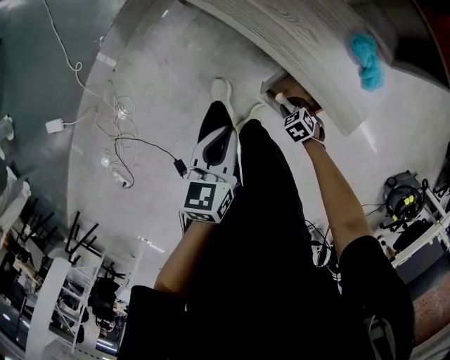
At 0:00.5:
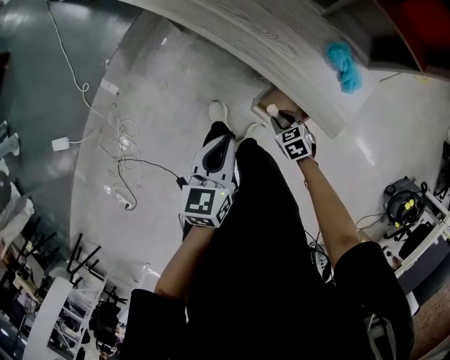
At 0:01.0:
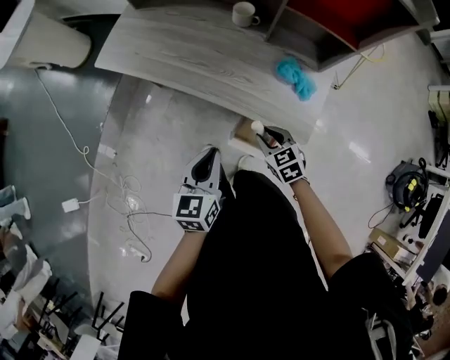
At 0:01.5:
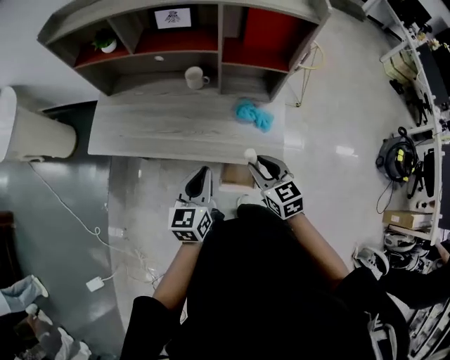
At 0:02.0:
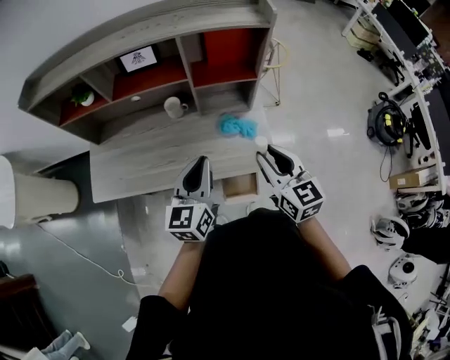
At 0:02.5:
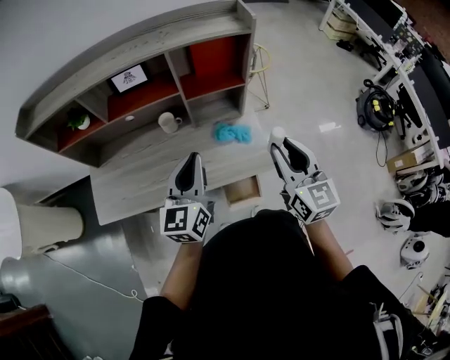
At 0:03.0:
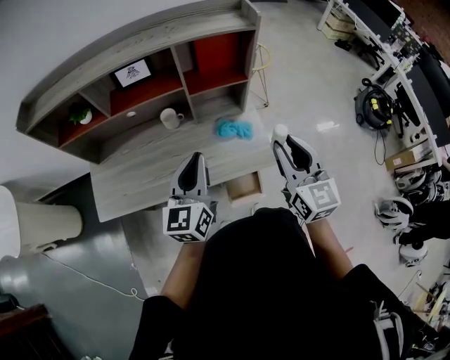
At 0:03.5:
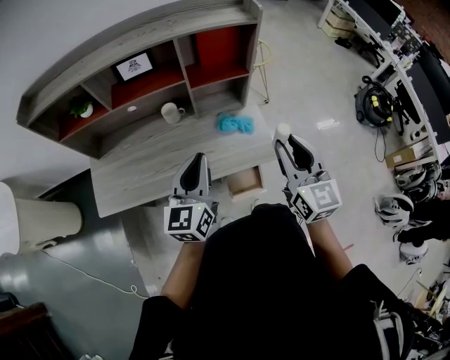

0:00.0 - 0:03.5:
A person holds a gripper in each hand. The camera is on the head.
0:00.0 - 0:02.0: The right gripper shifts some 60 cm upward, and tilts its fingers roughly 60 degrees upward, while the left gripper goes roughly 30 cm upward, and swivels some 50 degrees.
0:02.0 - 0:03.5: The left gripper ends up roughly 5 cm from where it was. Meanwhile the right gripper shifts about 5 cm upward.

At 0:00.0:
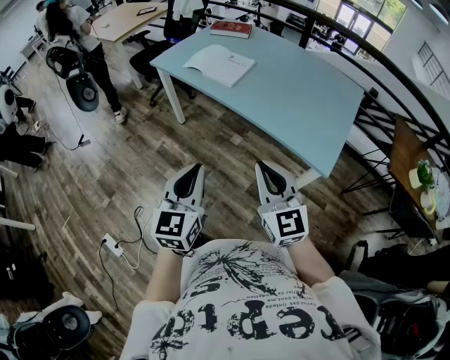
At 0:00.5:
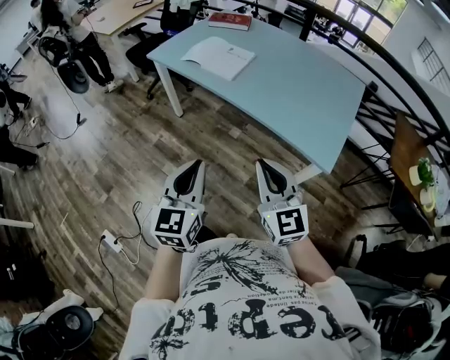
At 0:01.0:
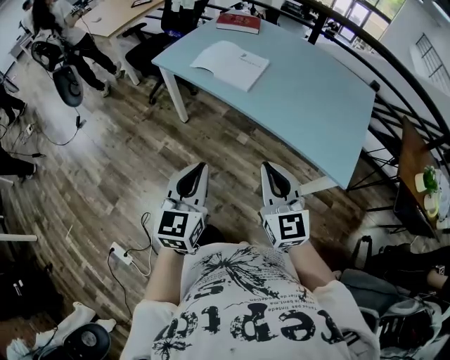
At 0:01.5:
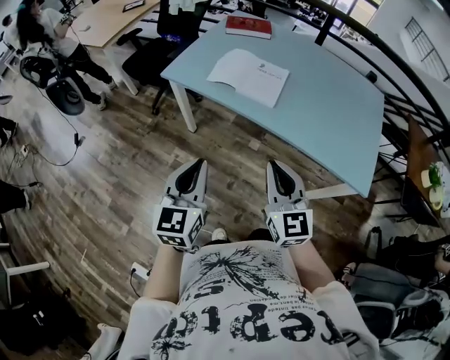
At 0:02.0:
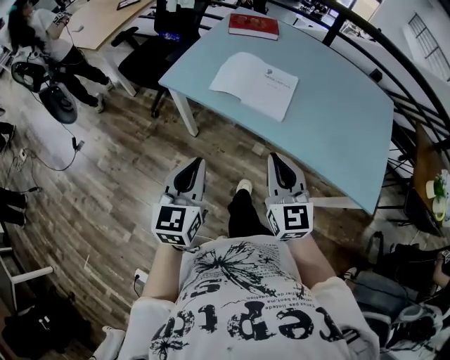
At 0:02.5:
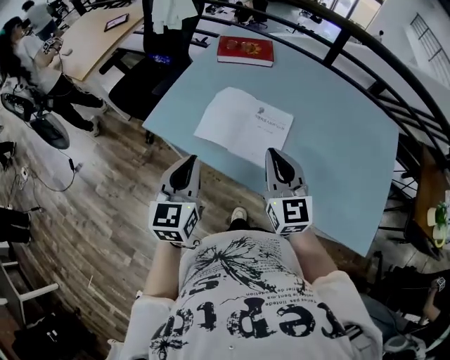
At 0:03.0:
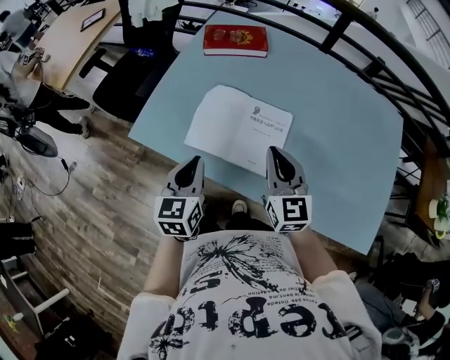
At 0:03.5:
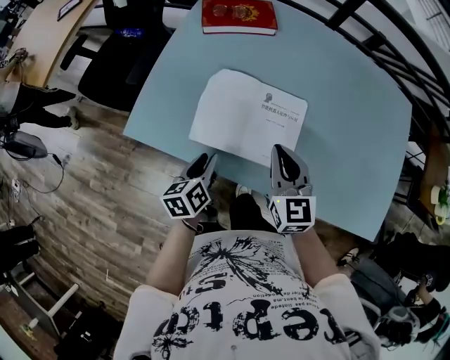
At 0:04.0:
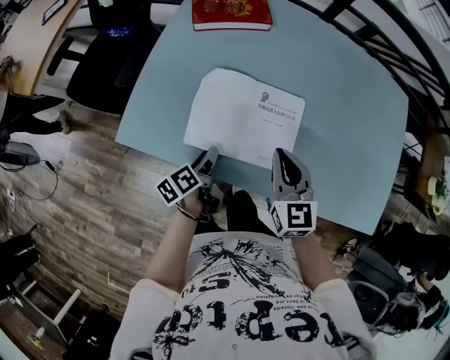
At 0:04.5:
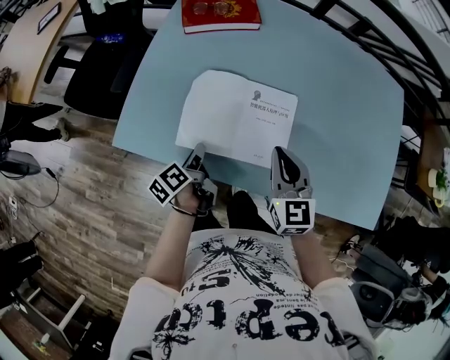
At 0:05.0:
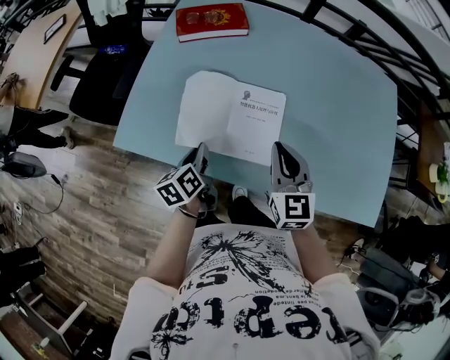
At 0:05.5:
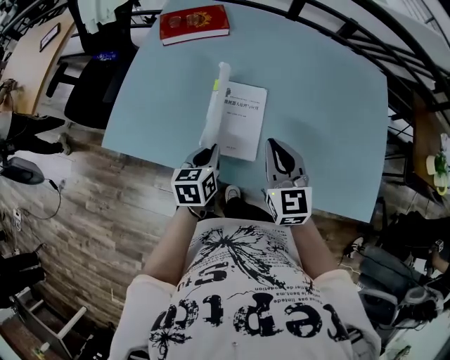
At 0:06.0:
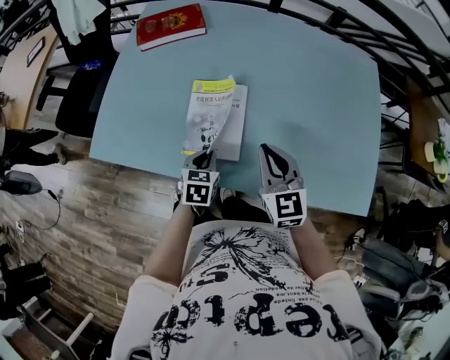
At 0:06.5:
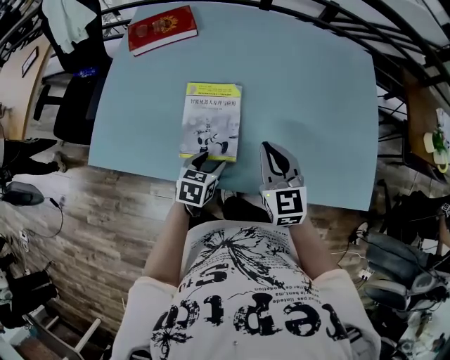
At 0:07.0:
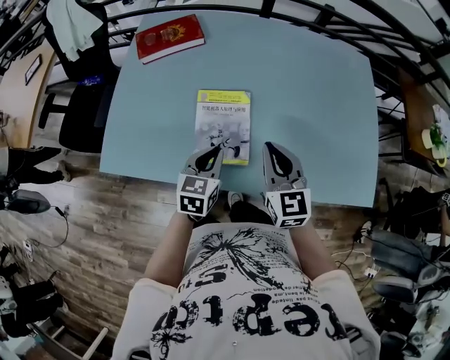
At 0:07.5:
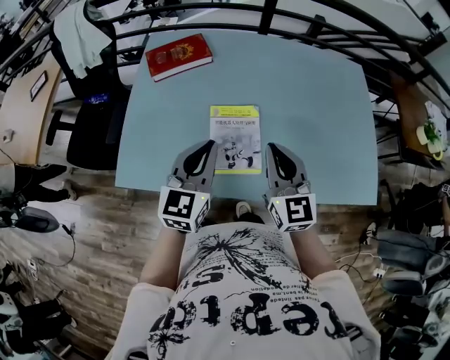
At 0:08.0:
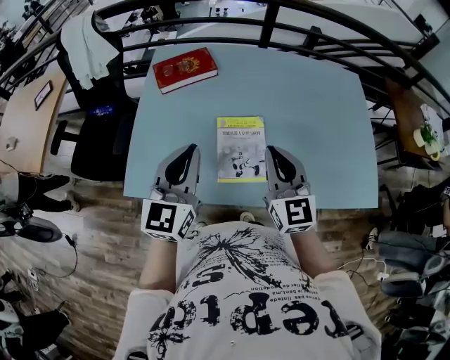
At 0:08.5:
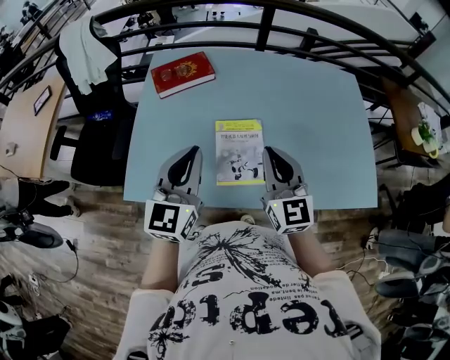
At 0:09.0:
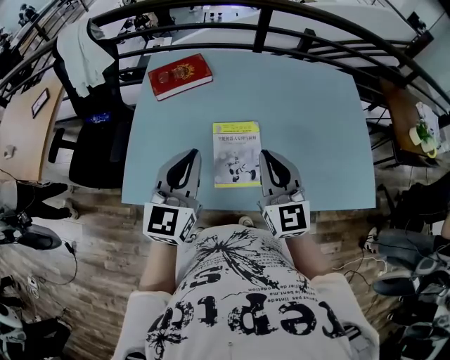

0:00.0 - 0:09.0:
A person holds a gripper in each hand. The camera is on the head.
0:00.0 - 0:02.0: Both grippers are carried forward and to the left, about 40 cm.
0:02.0 - 0:04.5: The right gripper travels forward by some 30 cm, and swivels some 20 degrees. The left gripper goes roughly 40 cm forward and downward, twists approximately 60 degrees counterclockwise, seen from behind, and opens, then closes again.
0:04.5 - 0:07.0: The right gripper travels to the right by approximately 10 cm. The left gripper is displaced to the right and upward by roughly 20 cm, twists approximately 70 degrees clockwise, seen from behind, and opens, then closes again.
0:07.0 - 0:09.0: The left gripper heads upward and to the left, covering about 25 cm, and rotates some 30 degrees, while the right gripper moves upward and to the left, roughly 15 cm.

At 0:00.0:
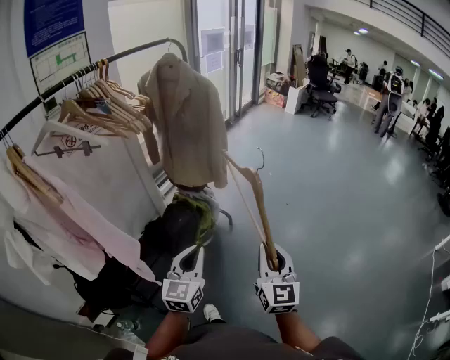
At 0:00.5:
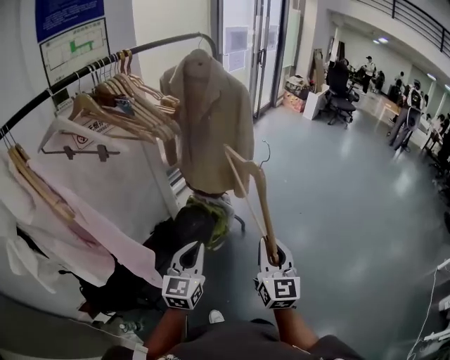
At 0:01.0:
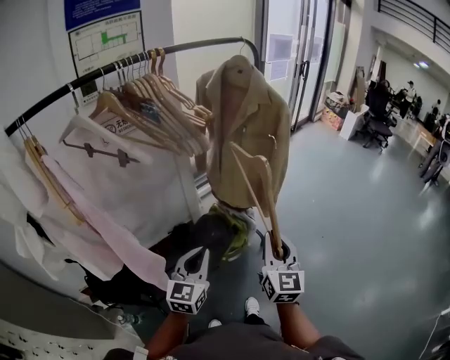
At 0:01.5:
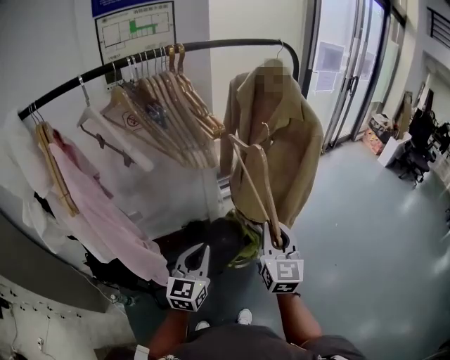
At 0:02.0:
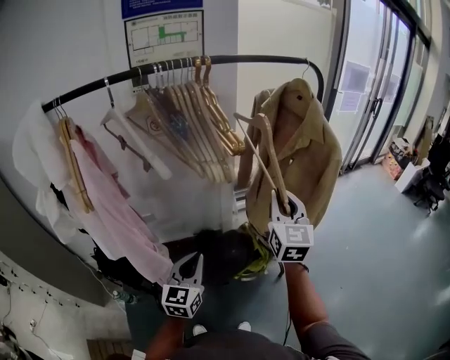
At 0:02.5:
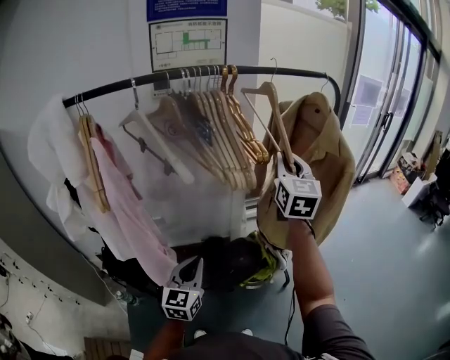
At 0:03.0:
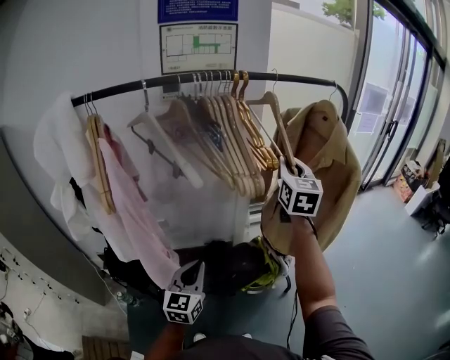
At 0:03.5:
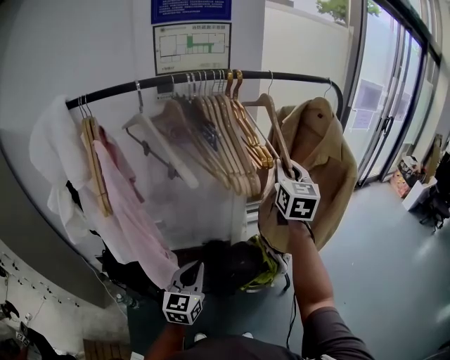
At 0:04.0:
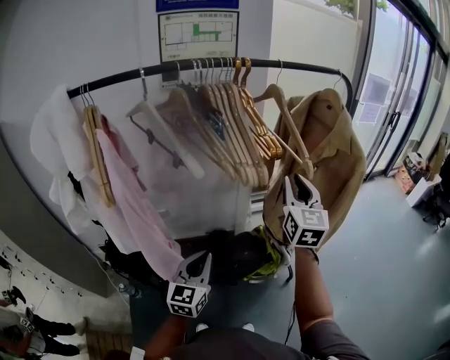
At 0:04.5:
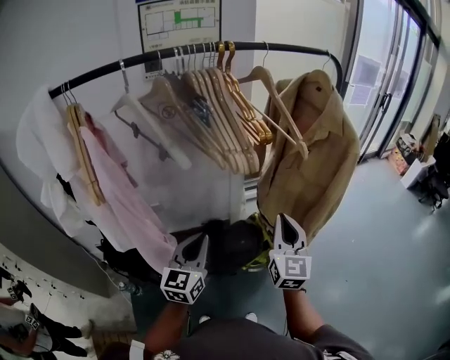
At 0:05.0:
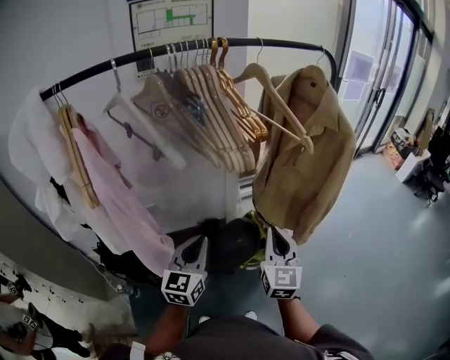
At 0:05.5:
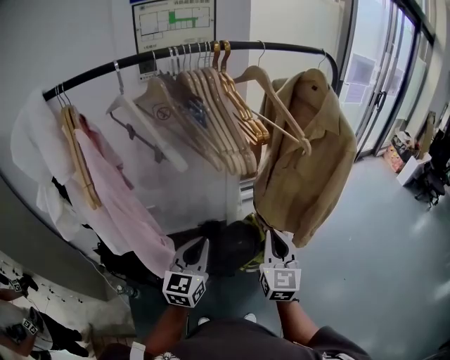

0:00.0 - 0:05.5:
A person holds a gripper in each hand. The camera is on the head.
0:00.0 - 0:02.0: The left gripper shifts by roughly 25 cm, and swivels roughly 40 degrees. Meanwhile the right gripper shifts by roughly 50 cm, and changes its angle by some 40 degrees.
0:02.0 - 0:03.5: The left gripper moves to the left, roughly 5 cm; the right gripper goes roughly 15 cm forward, upward and to the left.
0:03.5 - 0:05.5: The right gripper moves backward and downward, approximately 25 cm.

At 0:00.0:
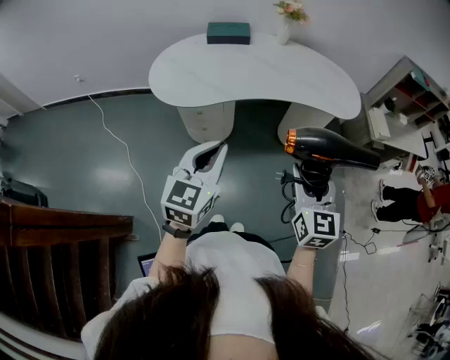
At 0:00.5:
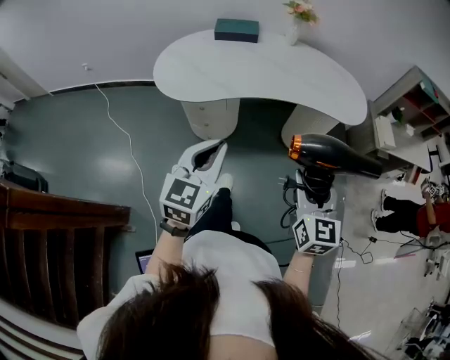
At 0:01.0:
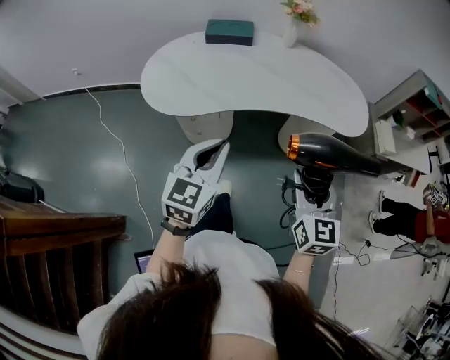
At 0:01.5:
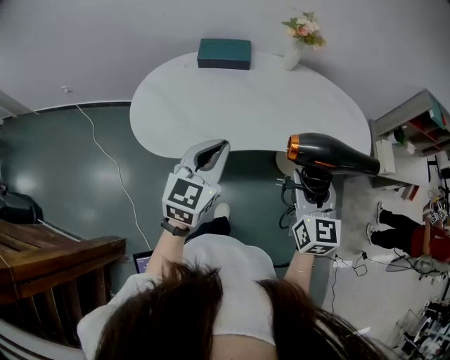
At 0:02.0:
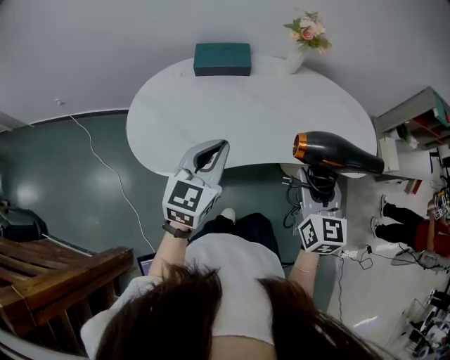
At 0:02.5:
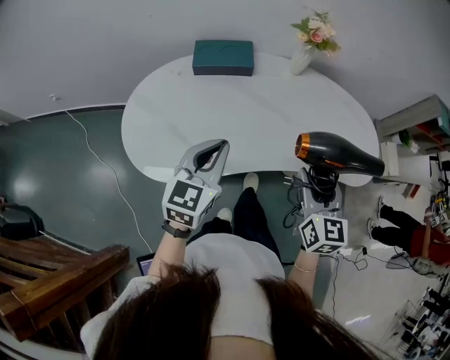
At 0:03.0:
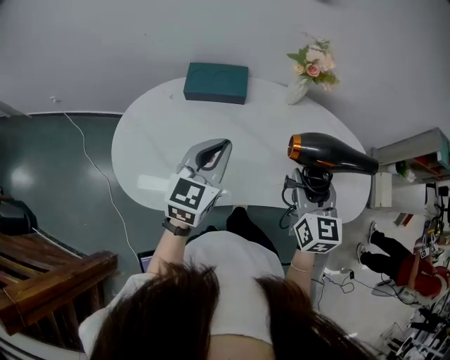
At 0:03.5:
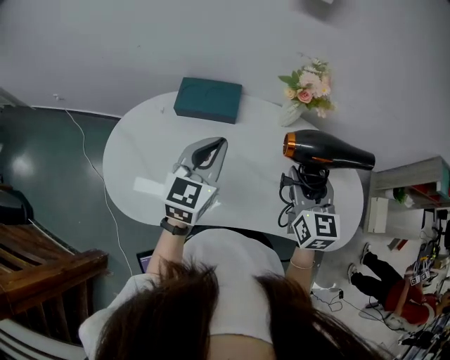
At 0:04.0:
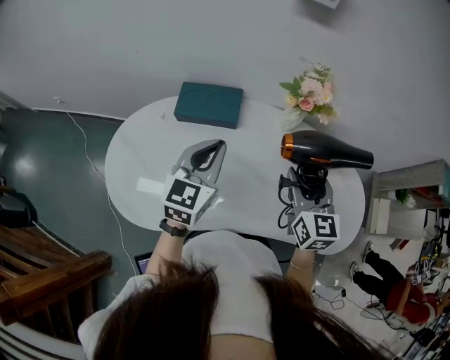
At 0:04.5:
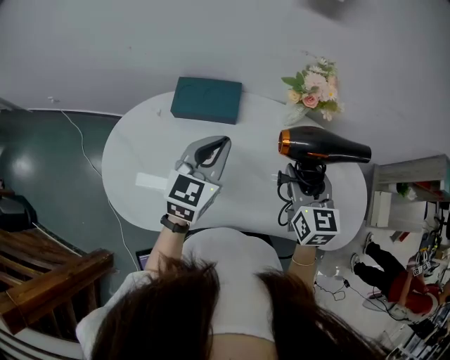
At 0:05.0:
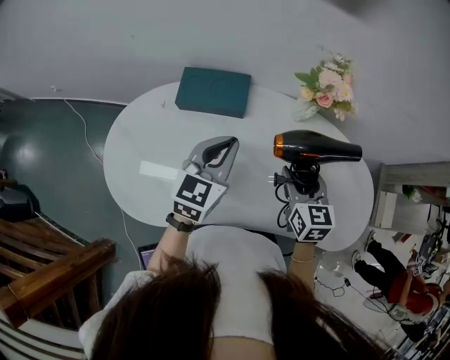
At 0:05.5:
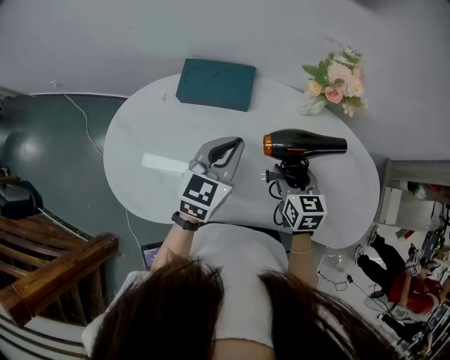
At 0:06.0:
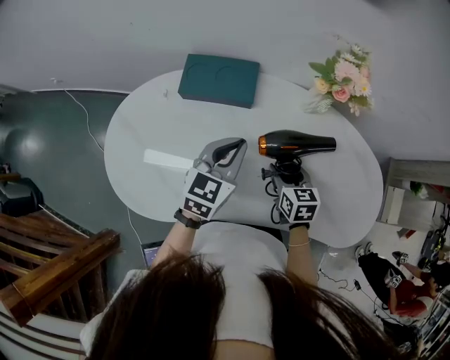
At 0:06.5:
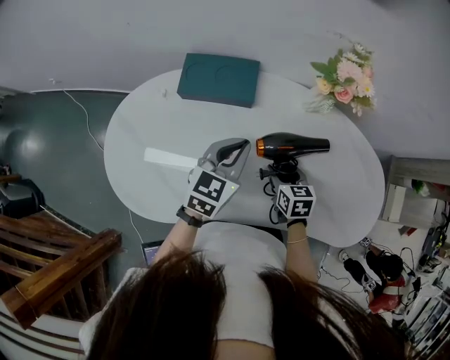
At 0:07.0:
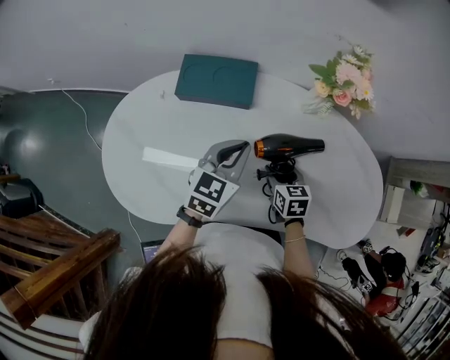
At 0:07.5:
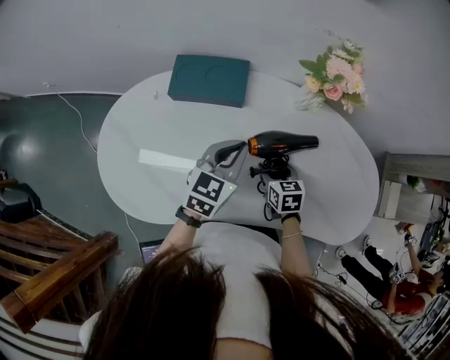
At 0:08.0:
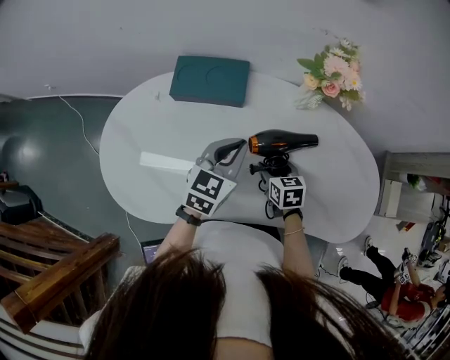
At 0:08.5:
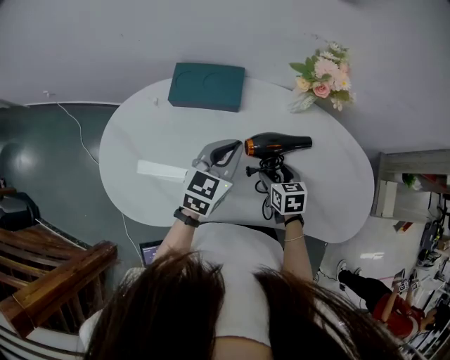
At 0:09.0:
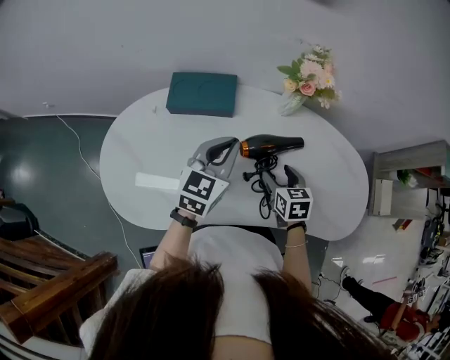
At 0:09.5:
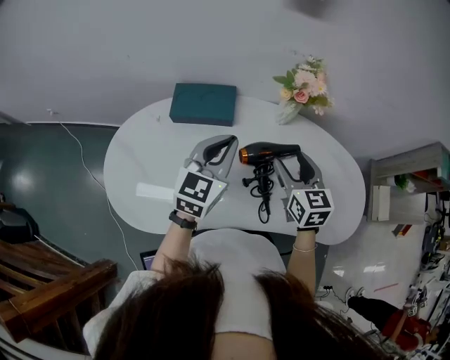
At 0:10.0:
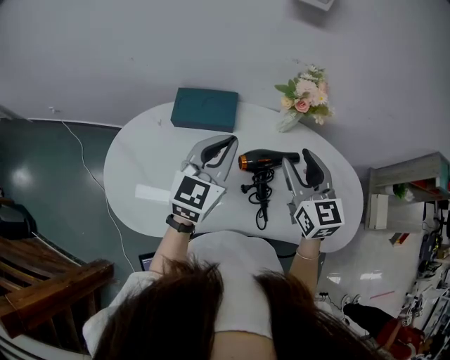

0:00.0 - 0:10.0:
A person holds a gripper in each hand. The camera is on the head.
0:00.0 - 0:02.0: Both grippers travel together forward, approximately 35 cm.
0:02.0 - 0:04.0: Both grippers travel together forward, approximately 25 cm.
0:04.0 - 0:06.0: The right gripper shifts about 20 cm downward, and changes its angle by about 30 degrees. Meanwhile the left gripper goes approximately 10 cm downward.
0:06.0 - 0:08.0: The right gripper goes some 5 cm downward.
0:08.0 - 0:10.0: The right gripper shifts some 30 cm upward, and points its fingers roughly 40 degrees further upward, while the left gripper goes roughly 15 cm upward.
